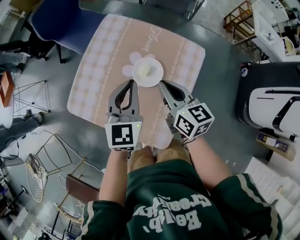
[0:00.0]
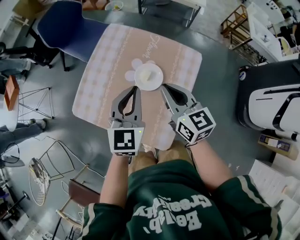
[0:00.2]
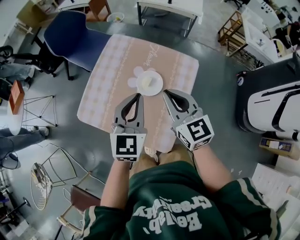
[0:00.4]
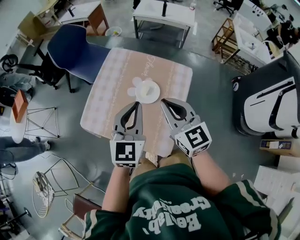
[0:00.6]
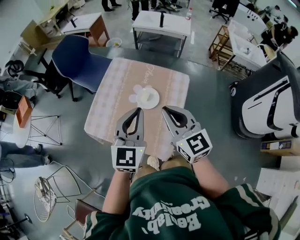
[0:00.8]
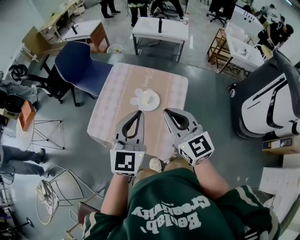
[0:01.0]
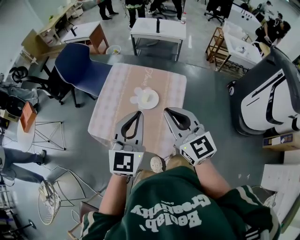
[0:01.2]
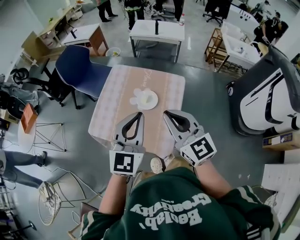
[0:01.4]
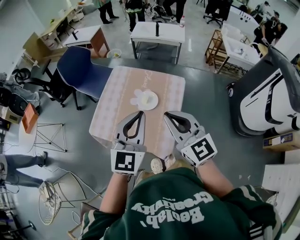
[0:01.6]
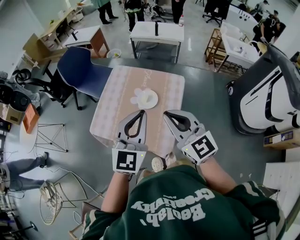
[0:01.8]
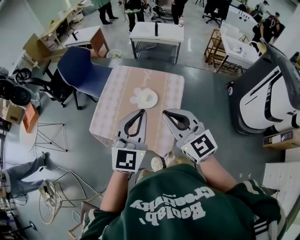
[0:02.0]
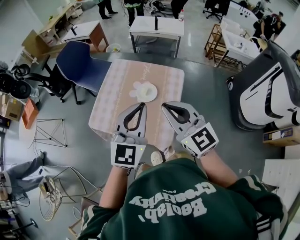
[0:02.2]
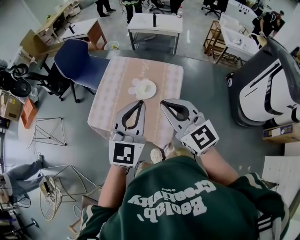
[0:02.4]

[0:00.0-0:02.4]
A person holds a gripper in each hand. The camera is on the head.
0:00.0 to 0:01.2: The left gripper goes about 20 cm upward.

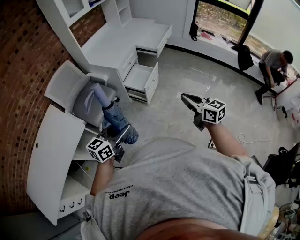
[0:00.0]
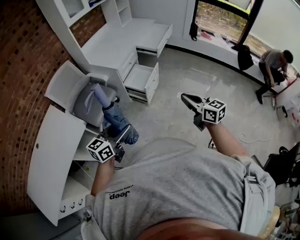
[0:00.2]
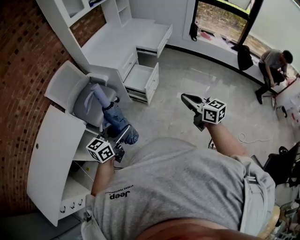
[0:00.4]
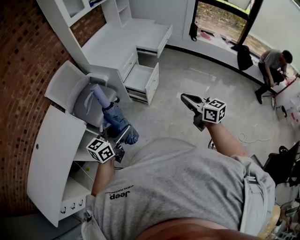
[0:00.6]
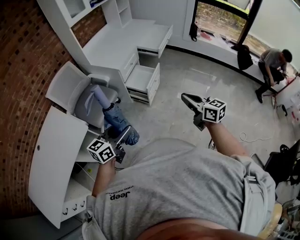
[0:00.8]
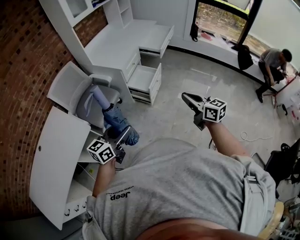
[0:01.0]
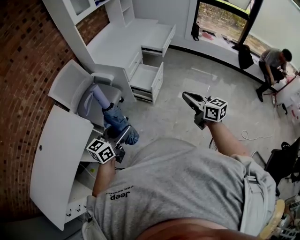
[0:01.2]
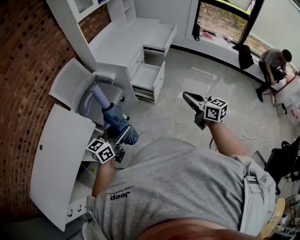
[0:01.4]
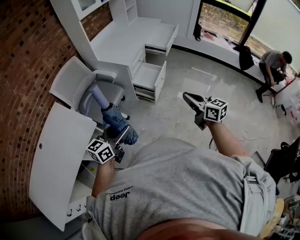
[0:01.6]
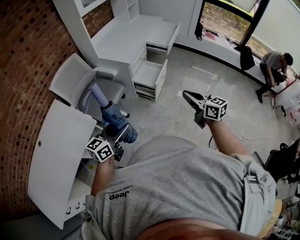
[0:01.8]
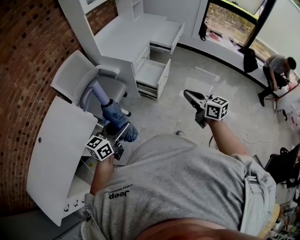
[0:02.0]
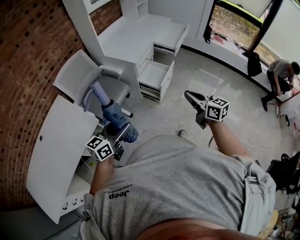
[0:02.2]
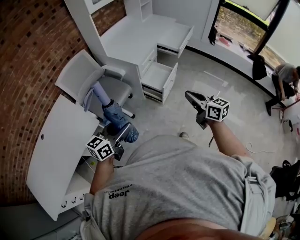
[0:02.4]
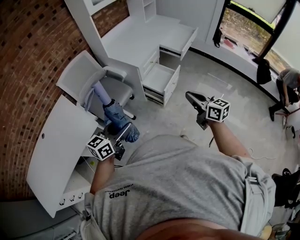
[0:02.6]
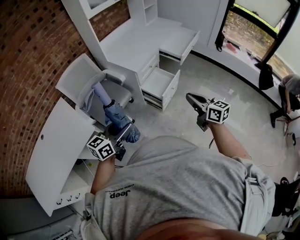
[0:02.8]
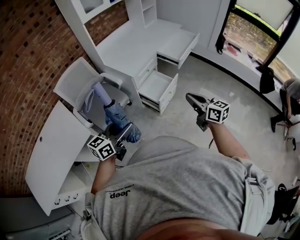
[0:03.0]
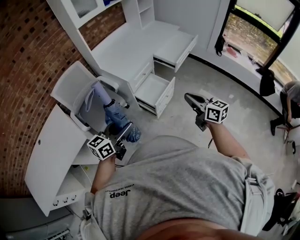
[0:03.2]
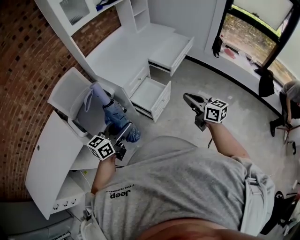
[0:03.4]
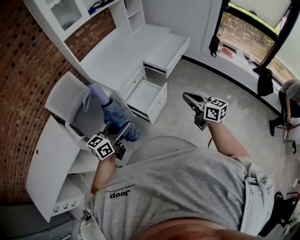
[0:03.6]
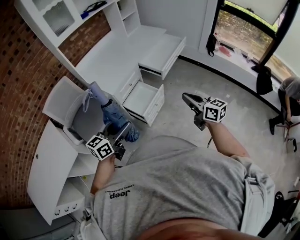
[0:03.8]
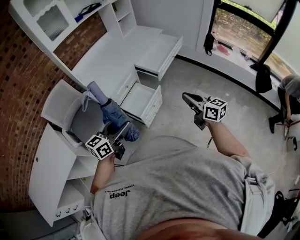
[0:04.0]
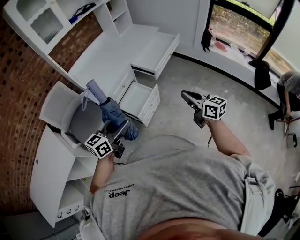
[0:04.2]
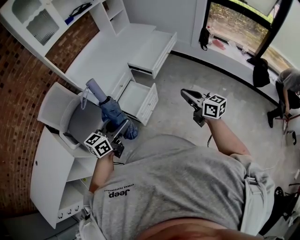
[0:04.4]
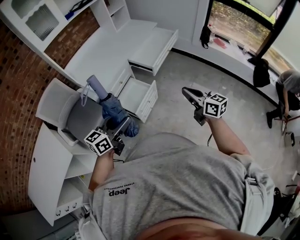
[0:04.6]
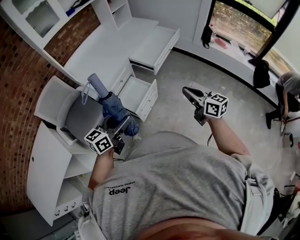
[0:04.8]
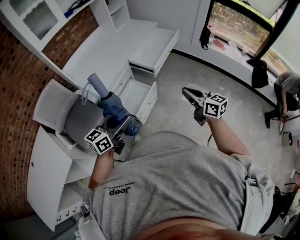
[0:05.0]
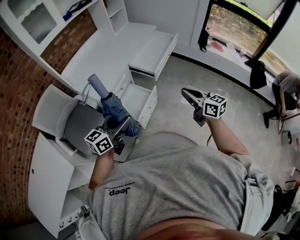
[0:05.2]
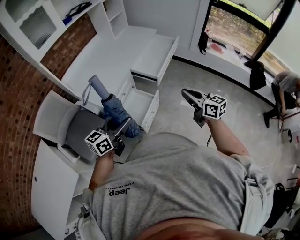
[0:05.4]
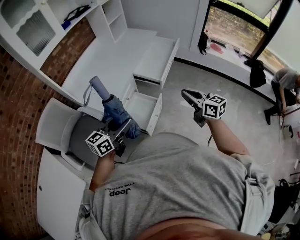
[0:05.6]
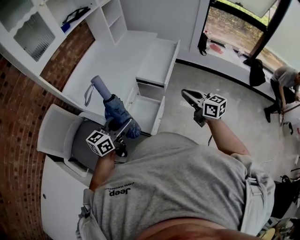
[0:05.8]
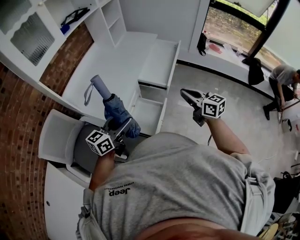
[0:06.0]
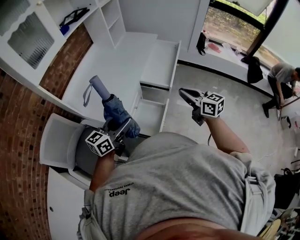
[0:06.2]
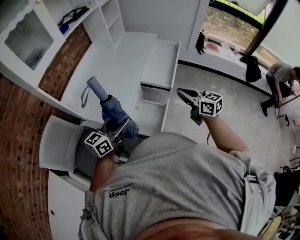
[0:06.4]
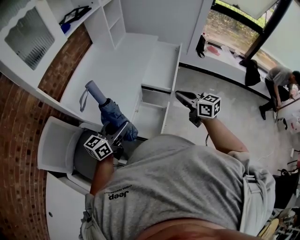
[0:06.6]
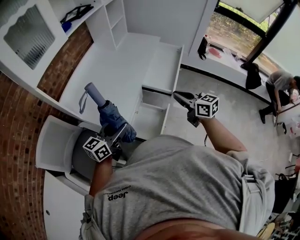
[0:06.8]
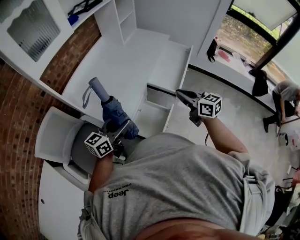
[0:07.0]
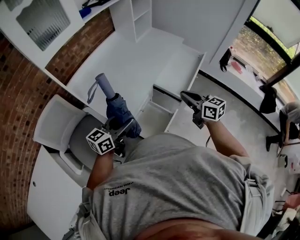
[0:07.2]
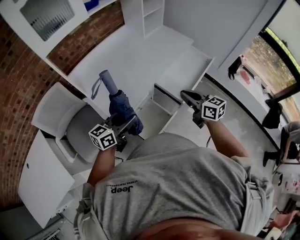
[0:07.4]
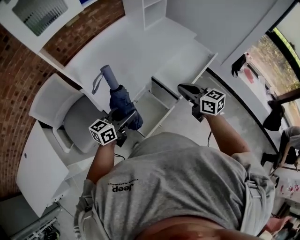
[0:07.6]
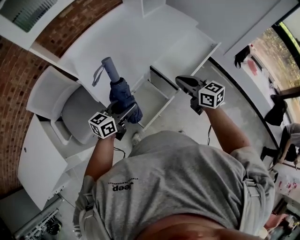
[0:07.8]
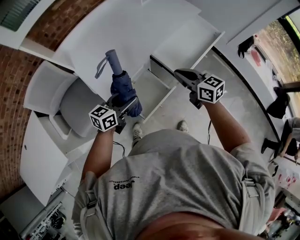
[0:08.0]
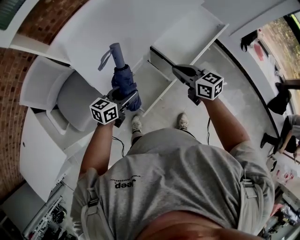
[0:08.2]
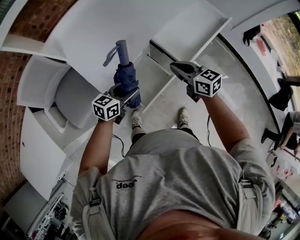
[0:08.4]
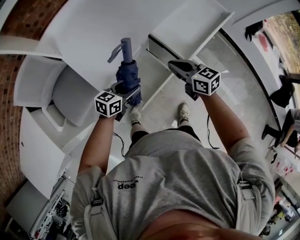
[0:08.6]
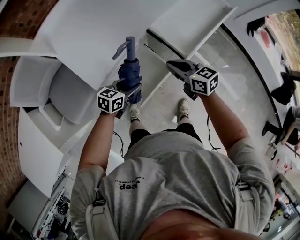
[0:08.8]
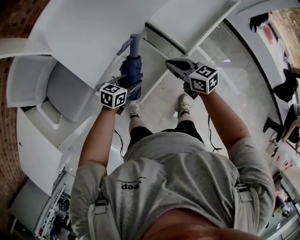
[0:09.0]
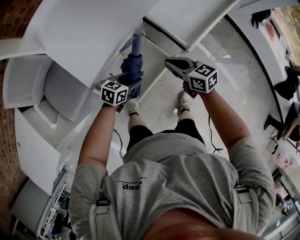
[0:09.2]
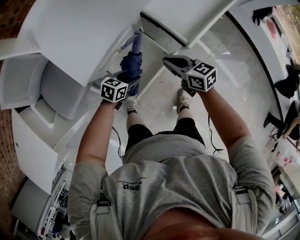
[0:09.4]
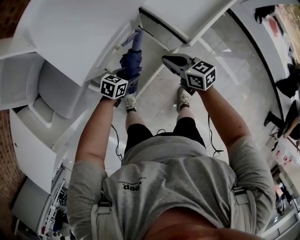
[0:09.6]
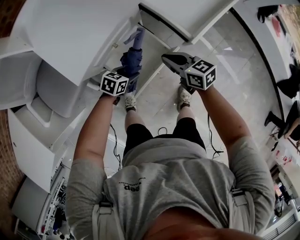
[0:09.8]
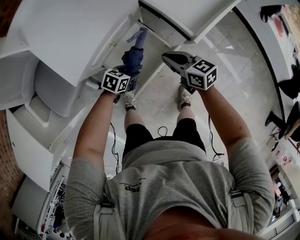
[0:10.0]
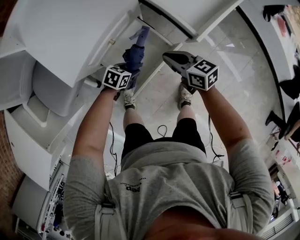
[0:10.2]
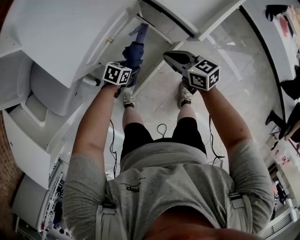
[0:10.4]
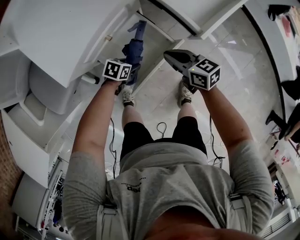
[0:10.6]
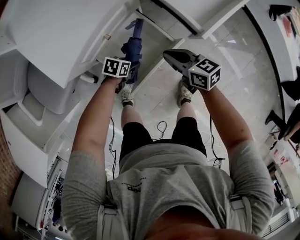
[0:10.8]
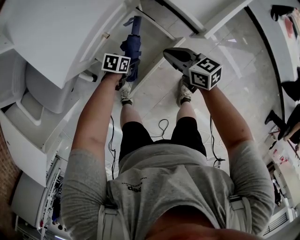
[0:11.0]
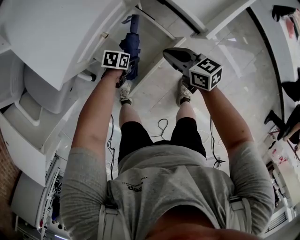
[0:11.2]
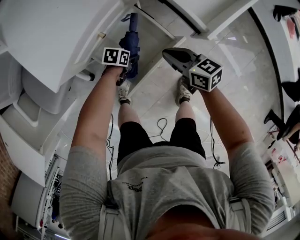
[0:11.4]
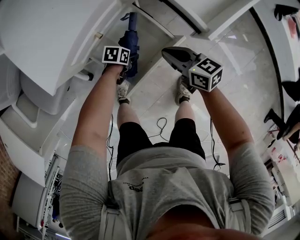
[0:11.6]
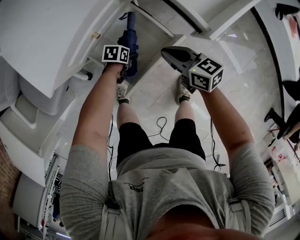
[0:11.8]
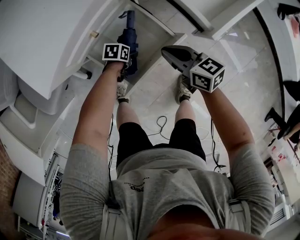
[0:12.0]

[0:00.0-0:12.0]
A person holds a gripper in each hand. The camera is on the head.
0:00.0 to 0:01.6: The two grippers go roughly 10 cm to the left.
0:01.6 to 0:03.0: Both grippers move forward and to the right, roughly 20 cm.
0:03.0 to 0:04.4: Both grippers move to the right and forward, roughly 25 cm.
0:04.4 to 0:06.0: The right gripper heads to the left and forward, covering some 25 cm; the left gripper goes about 25 cm forward and to the left.
0:06.0 to 0:07.6: The right gripper travels forward by roughly 15 cm, and rotates approximately 30 degrees. The left gripper is displaced forward and downward by about 15 cm, goes to the left and returns, roughly 5 cm each way, and changes its angle by some 20 degrees.
0:07.6 to 0:09.0: Both grippers travel together downward, about 25 cm. The left gripper turns by roughly 30 degrees.
0:09.0 to 0:10.4: The grippers both shift downward by roughly 20 cm. The left gripper swivels roughly 20 degrees.
0:10.4 to 0:12.0: The left gripper moves downward, roughly 15 cm, and changes its angle by roughly 20 degrees. Meanwhile the right gripper is displaced downward by approximately 5 cm.

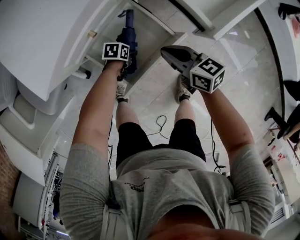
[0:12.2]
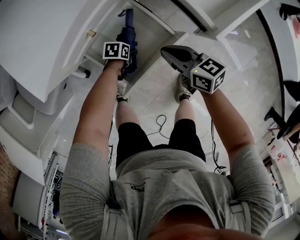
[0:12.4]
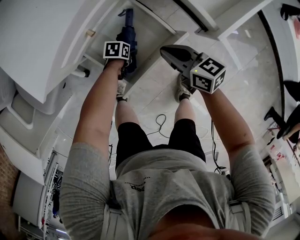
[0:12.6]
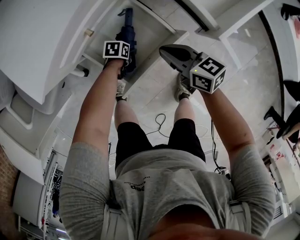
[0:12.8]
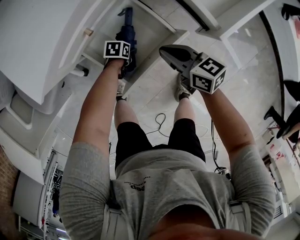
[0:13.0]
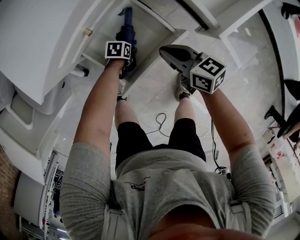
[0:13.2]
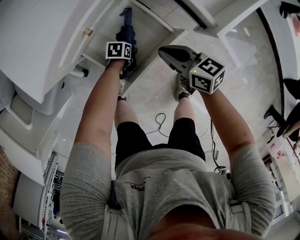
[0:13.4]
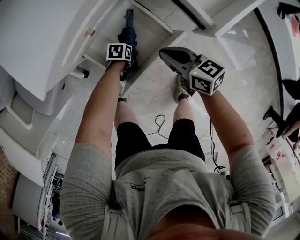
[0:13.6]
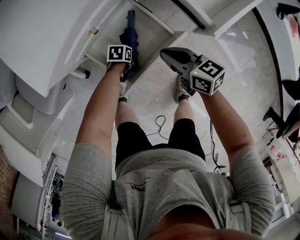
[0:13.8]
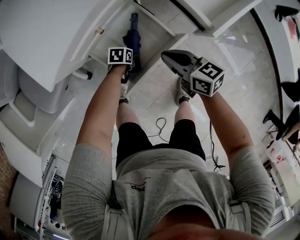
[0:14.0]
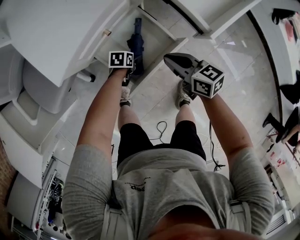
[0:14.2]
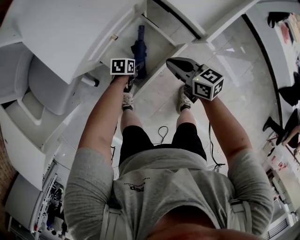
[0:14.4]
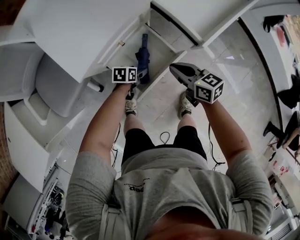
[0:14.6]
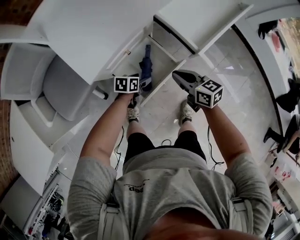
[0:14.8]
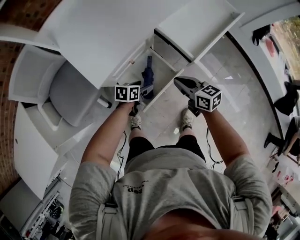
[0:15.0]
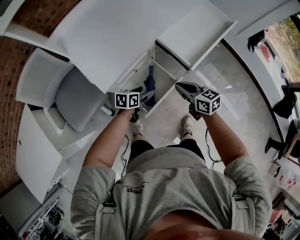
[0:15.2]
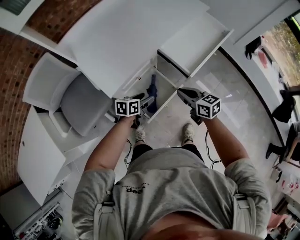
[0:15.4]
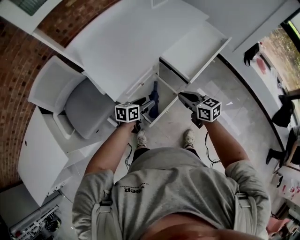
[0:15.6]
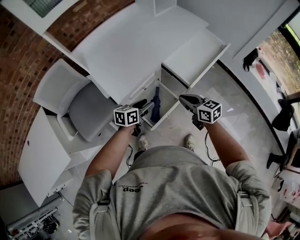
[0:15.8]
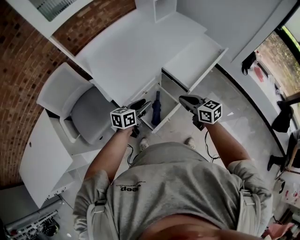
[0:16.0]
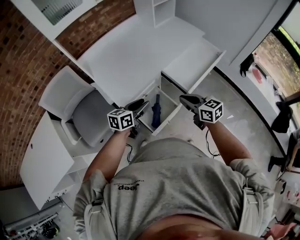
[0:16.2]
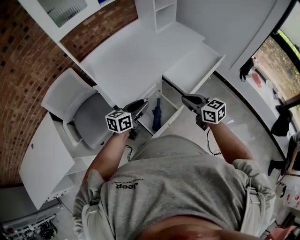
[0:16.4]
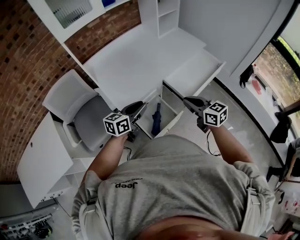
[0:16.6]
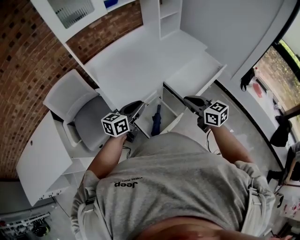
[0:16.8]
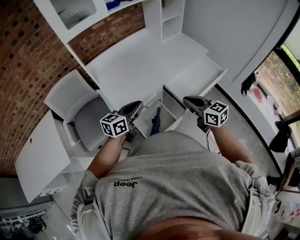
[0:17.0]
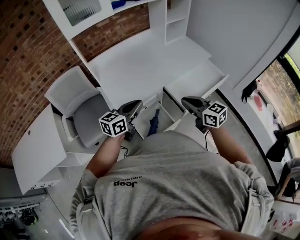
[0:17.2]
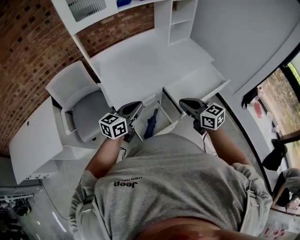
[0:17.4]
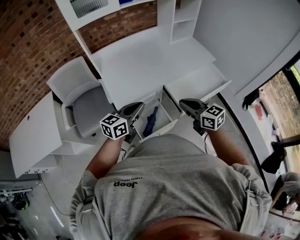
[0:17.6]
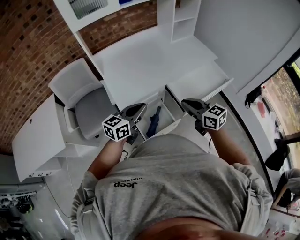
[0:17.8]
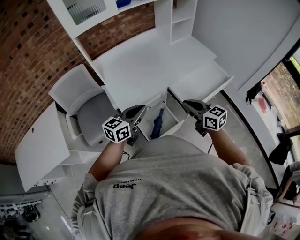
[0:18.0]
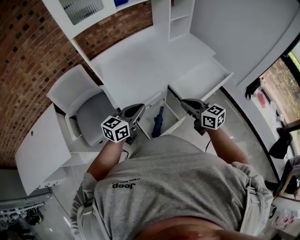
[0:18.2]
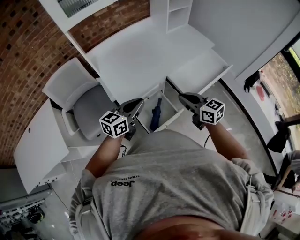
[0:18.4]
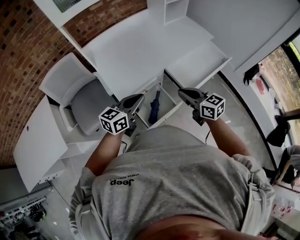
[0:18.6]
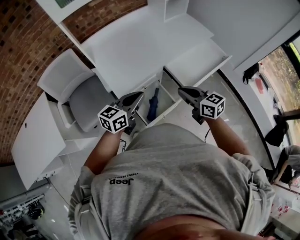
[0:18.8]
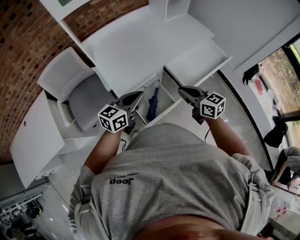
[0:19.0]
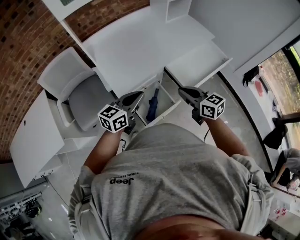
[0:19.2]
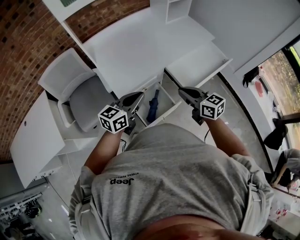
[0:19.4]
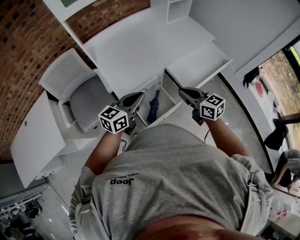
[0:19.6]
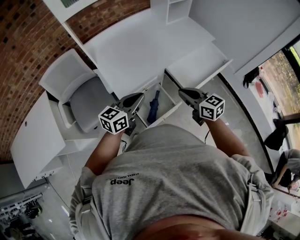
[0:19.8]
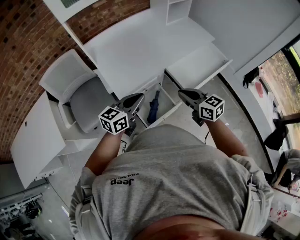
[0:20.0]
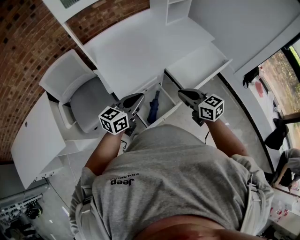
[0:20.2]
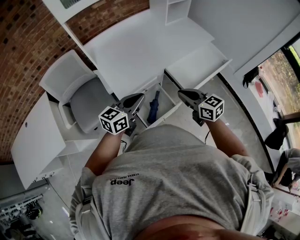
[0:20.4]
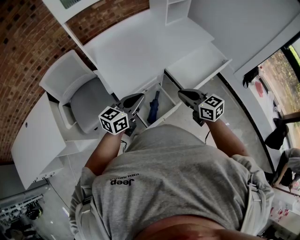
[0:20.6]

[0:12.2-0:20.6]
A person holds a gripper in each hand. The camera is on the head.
0:12.2 to 0:13.6: There are only small adjustments of the grippers.
0:13.6 to 0:15.0: The right gripper travels upward by roughly 15 cm. The left gripper goes about 30 cm upward, and swivels roughly 30 degrees.
0:15.0 to 0:16.4: The right gripper shifts roughly 25 cm upward, while the left gripper heads upward, covering some 35 cm, turns by approximately 30 degrees, and closes its fingers.
0:16.4 to 0:17.8: The right gripper moves some 5 cm; the left gripper travels upward by approximately 5 cm, and closes up.
0:17.8 to 0:19.2: The grippers stay close to where they were, moving slightly.
0:19.2 to 0:20.6: Neither gripper changes place.

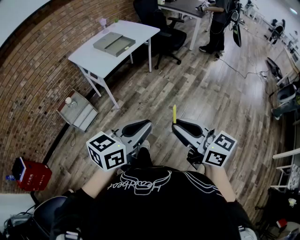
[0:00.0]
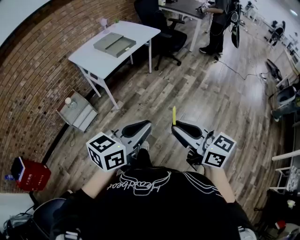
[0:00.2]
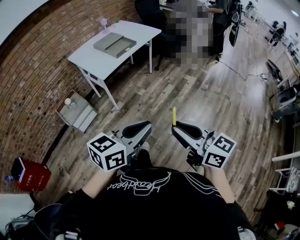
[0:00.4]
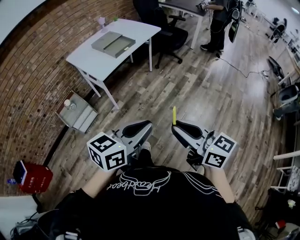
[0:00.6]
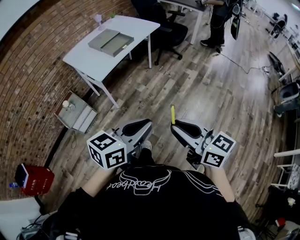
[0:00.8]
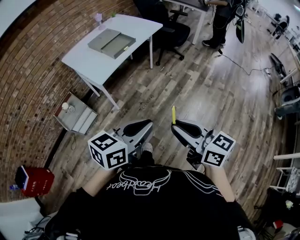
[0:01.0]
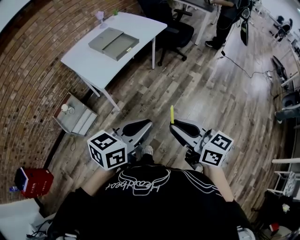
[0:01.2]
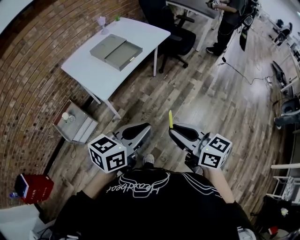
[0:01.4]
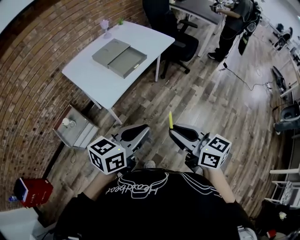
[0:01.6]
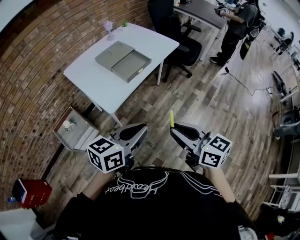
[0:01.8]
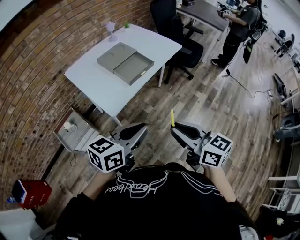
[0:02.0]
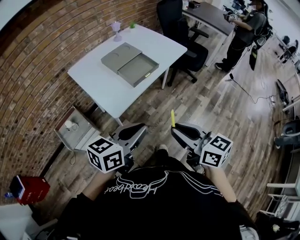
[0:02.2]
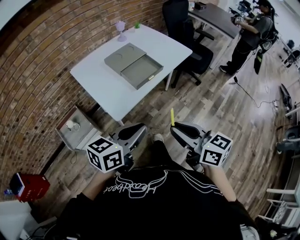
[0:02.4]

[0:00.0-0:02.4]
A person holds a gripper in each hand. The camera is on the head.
0:00.0 to 0:01.2: Both grippers travel together forward, some 15 cm.
0:01.2 to 0:02.4: The two grippers go some 25 cm forward and to the left.
